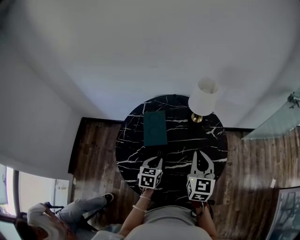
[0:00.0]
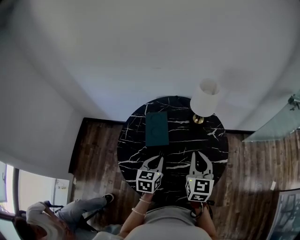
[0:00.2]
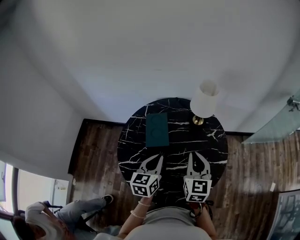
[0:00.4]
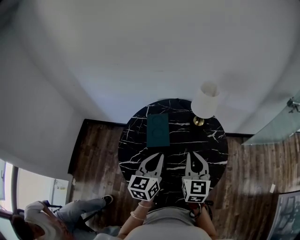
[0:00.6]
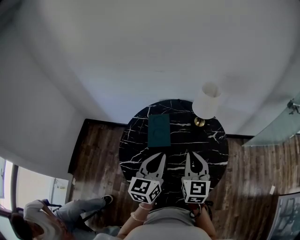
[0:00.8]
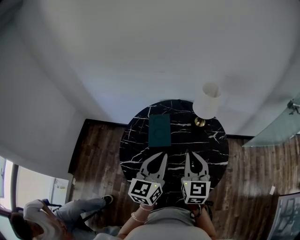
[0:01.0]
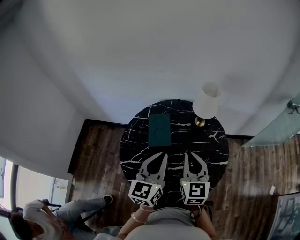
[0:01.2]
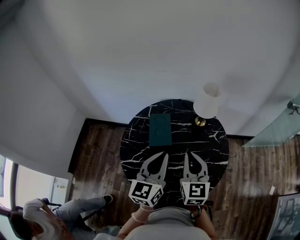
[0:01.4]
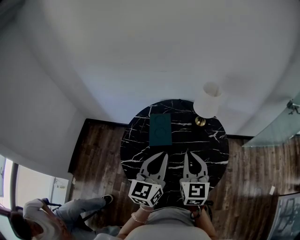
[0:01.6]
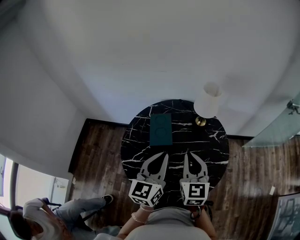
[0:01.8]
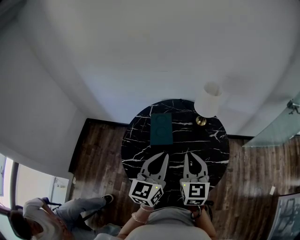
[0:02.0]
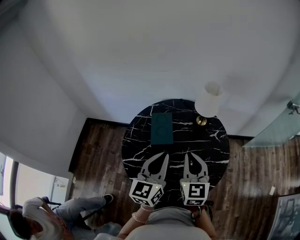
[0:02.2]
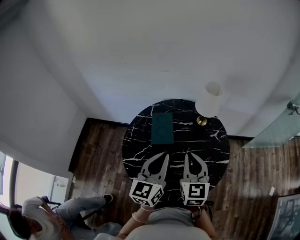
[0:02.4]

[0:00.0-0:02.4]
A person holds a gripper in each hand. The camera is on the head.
0:00.0 to 0:01.2: The right gripper moves to the left, approximately 5 cm; the left gripper shifts about 25 cm upward, and angles its fingers upward, by some 40 degrees.
0:01.2 to 0:02.4: The grippers move only a little.

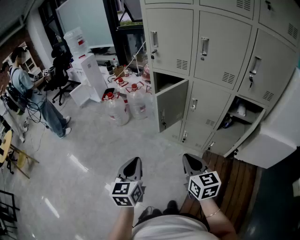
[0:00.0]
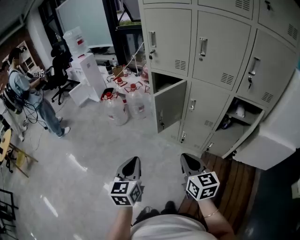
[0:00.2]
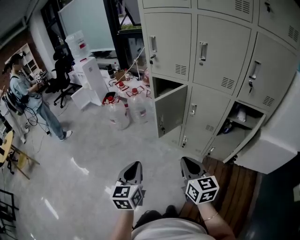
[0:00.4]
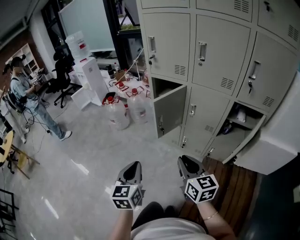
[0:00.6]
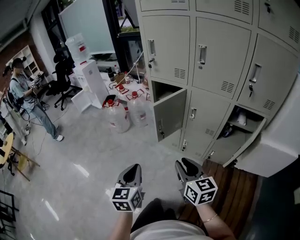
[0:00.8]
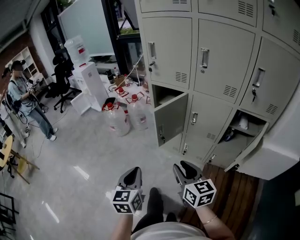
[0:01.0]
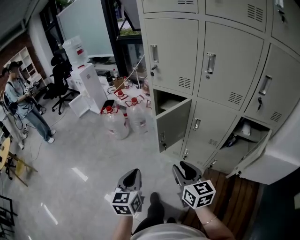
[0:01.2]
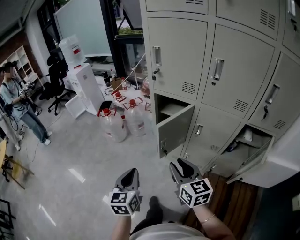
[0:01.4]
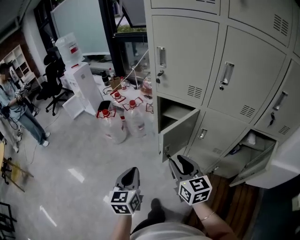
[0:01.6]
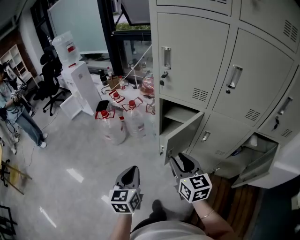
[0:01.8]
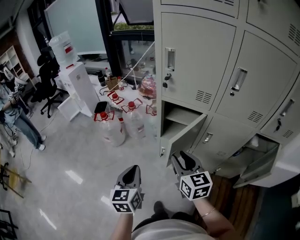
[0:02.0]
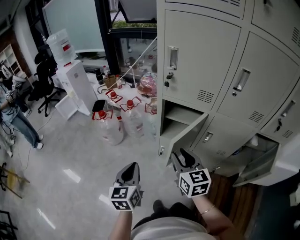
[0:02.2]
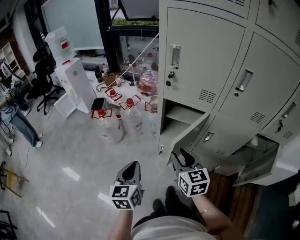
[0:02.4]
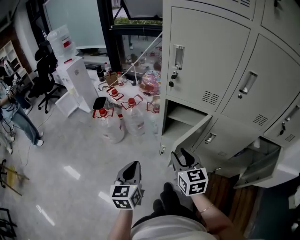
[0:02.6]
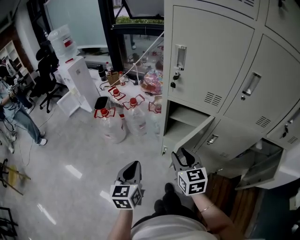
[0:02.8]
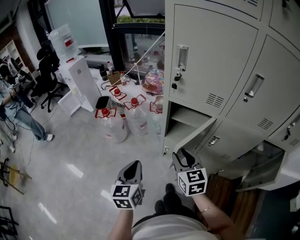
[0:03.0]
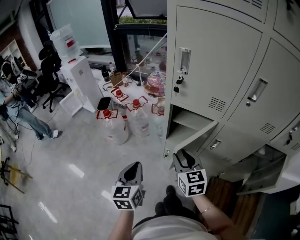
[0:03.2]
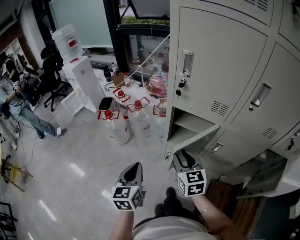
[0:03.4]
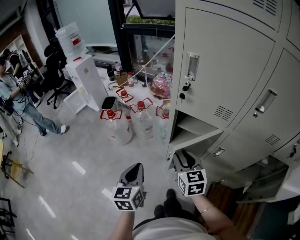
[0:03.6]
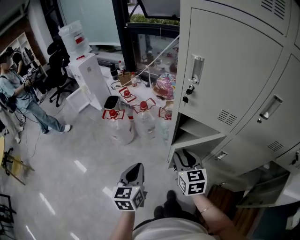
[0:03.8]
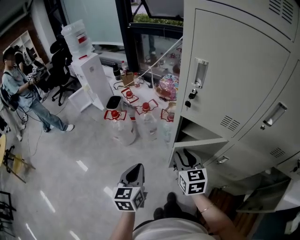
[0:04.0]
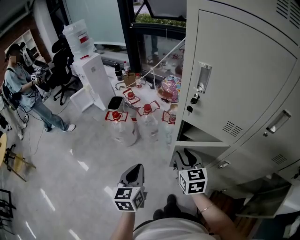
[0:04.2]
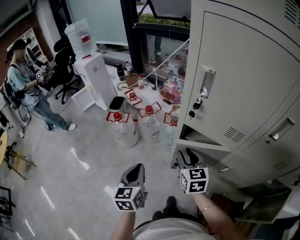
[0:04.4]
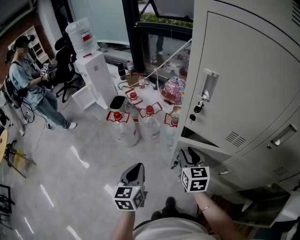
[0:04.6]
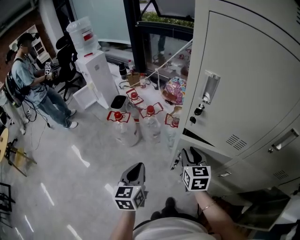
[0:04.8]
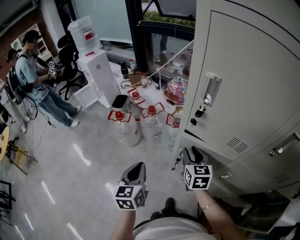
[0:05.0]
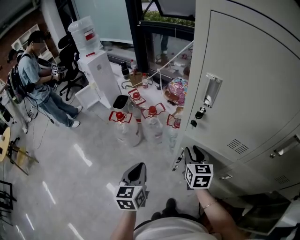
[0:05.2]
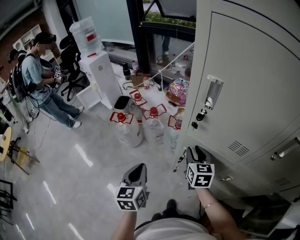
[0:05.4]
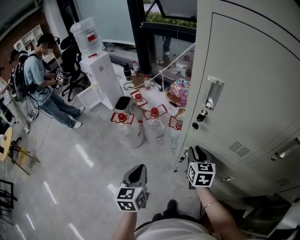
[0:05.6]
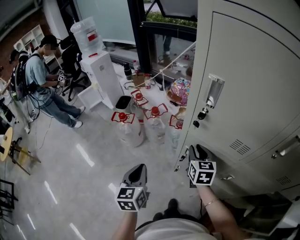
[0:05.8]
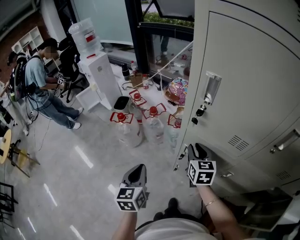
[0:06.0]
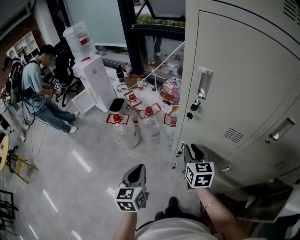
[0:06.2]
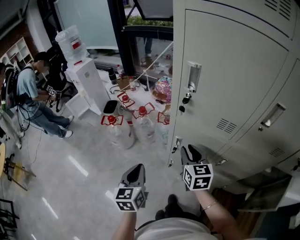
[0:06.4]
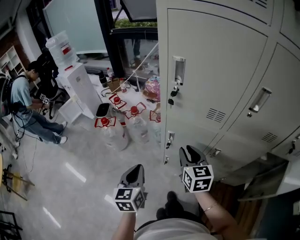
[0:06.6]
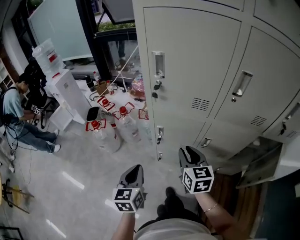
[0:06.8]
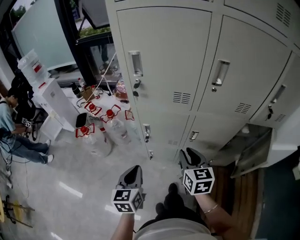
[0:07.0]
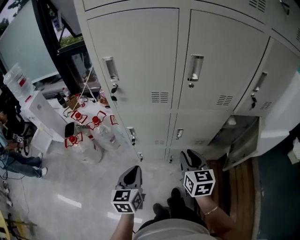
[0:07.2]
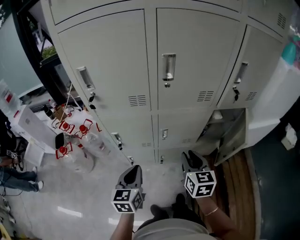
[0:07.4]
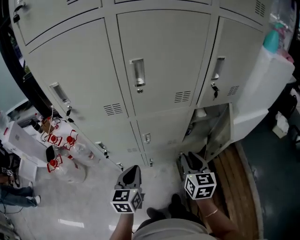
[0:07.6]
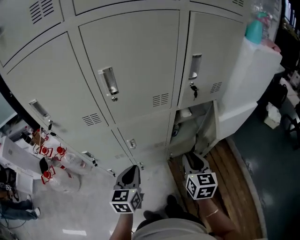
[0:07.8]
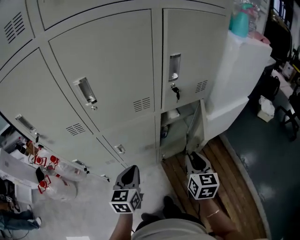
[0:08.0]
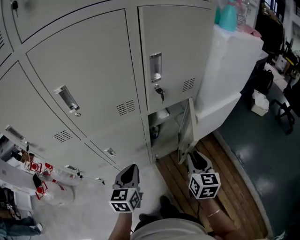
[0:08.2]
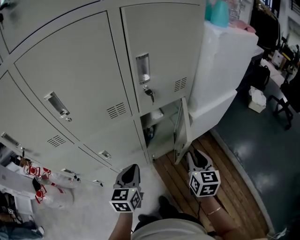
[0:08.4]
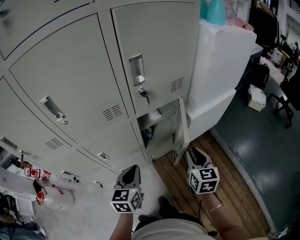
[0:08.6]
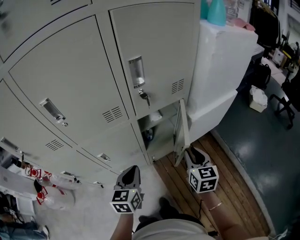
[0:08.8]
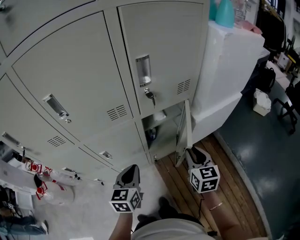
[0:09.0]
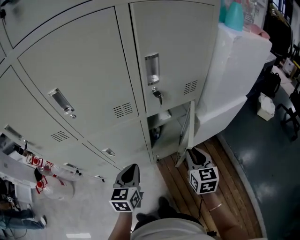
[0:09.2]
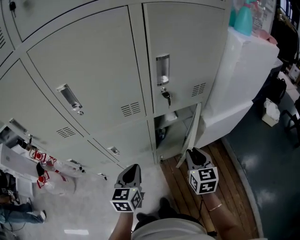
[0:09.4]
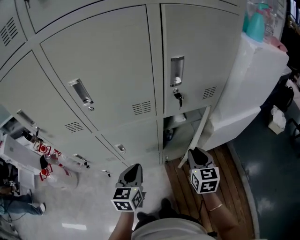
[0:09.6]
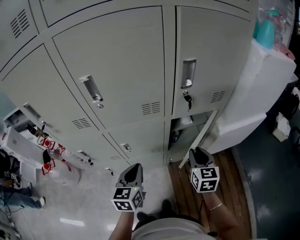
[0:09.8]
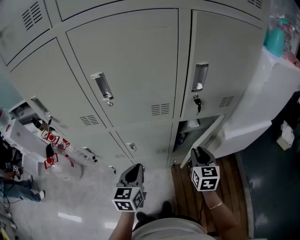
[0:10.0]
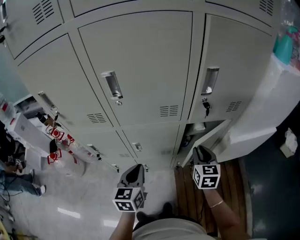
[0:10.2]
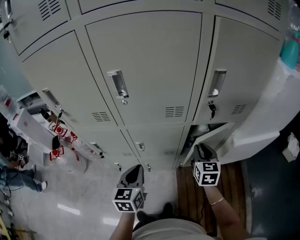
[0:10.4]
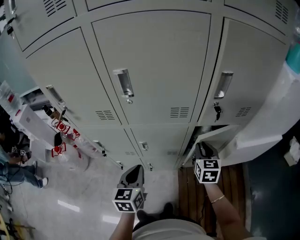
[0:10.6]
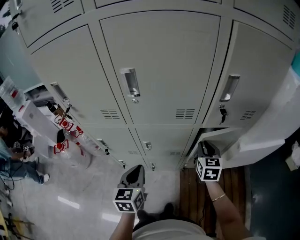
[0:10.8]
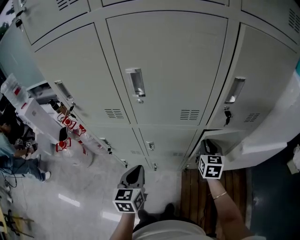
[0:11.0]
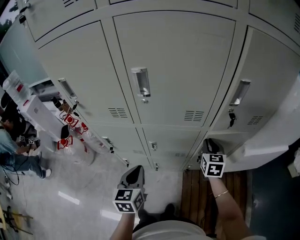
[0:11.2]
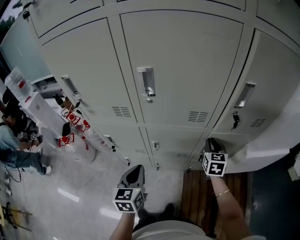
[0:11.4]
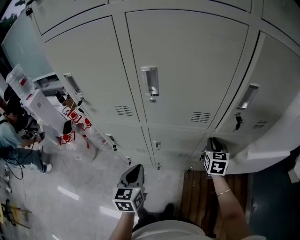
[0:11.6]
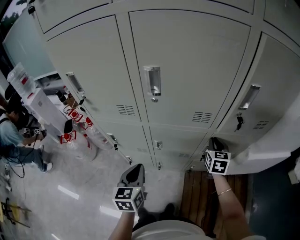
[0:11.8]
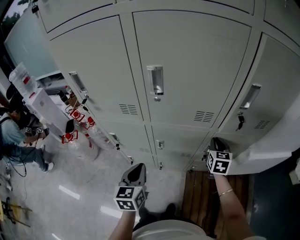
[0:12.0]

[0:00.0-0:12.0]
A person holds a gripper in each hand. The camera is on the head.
0:00.0 to 0:01.6: The two grippers go some 25 cm forward. The right gripper opens up.
0:01.6 to 0:03.0: Both grippers travel together forward, some 15 cm.
0:03.0 to 0:04.4: Both grippers travel together forward, roughly 15 cm.
0:04.4 to 0:06.0: The right gripper shifts about 5 cm forward.
0:06.0 to 0:07.6: The right gripper shifts by roughly 50 cm, and swivels about 40 degrees. The left gripper changes place by roughly 35 cm, and rotates about 50 degrees.
0:07.6 to 0:09.0: Both grippers travel together to the right and forward, approximately 25 cm.
0:09.0 to 0:10.4: The right gripper shifts roughly 15 cm to the left and forward, while the left gripper shifts approximately 15 cm to the left, and rotates about 20 degrees.
0:10.4 to 0:12.0: The left gripper heads to the left, covering some 5 cm; the right gripper goes some 10 cm forward.

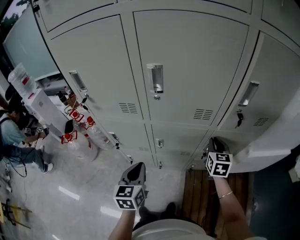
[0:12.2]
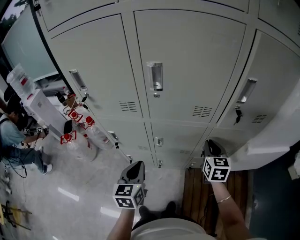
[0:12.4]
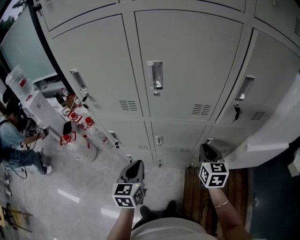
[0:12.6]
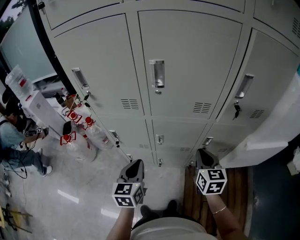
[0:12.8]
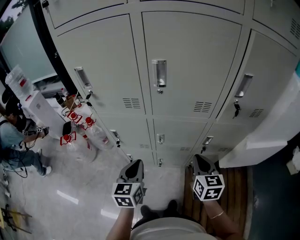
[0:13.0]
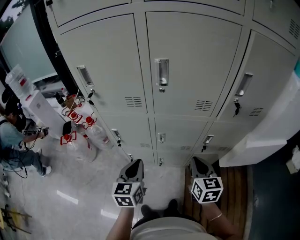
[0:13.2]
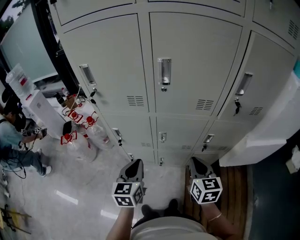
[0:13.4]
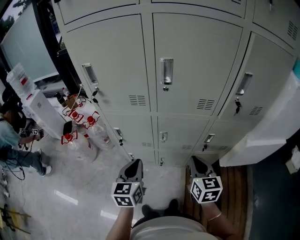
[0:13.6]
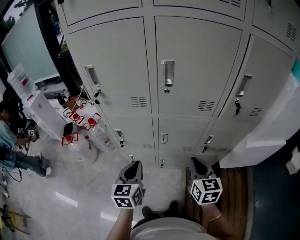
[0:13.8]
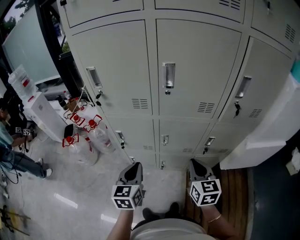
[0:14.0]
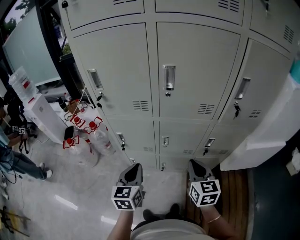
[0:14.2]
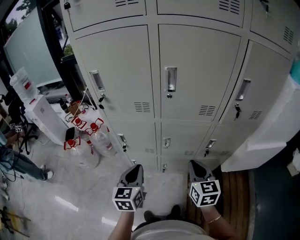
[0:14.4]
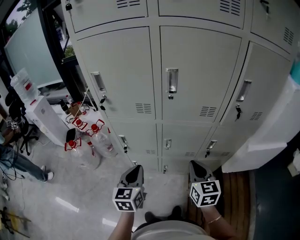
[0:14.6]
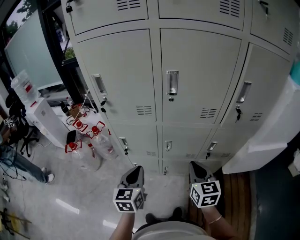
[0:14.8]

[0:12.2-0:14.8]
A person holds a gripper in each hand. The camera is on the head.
0:12.2 to 0:13.4: The left gripper changes place by roughly 5 cm; the right gripper shifts approximately 20 cm backward and to the left.
0:13.4 to 0:14.8: The grippers stay close to where they were, moving slightly.

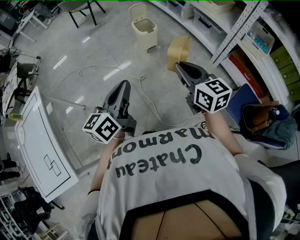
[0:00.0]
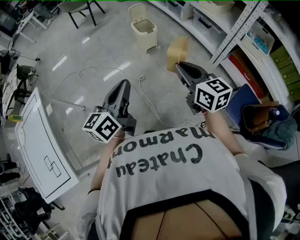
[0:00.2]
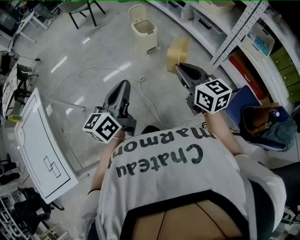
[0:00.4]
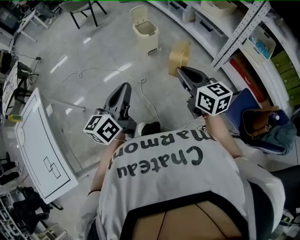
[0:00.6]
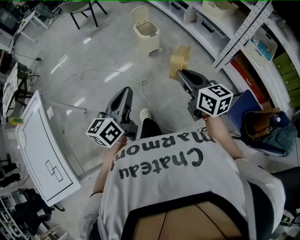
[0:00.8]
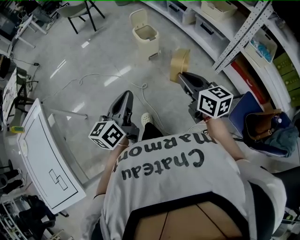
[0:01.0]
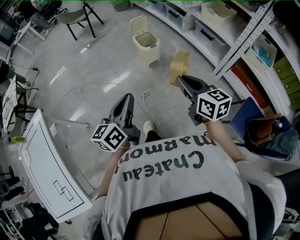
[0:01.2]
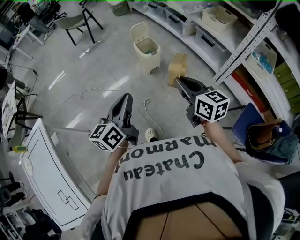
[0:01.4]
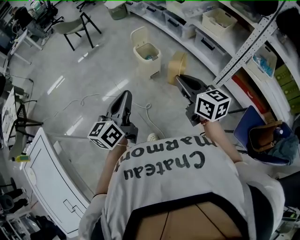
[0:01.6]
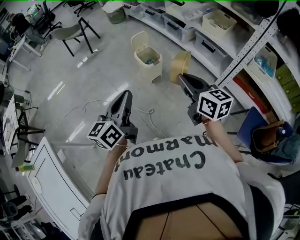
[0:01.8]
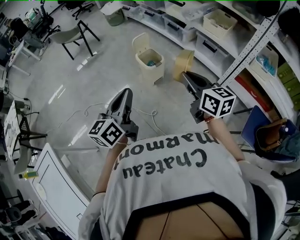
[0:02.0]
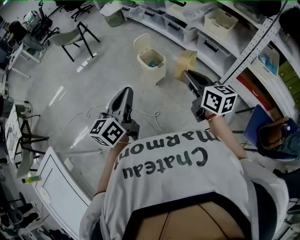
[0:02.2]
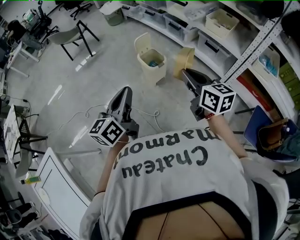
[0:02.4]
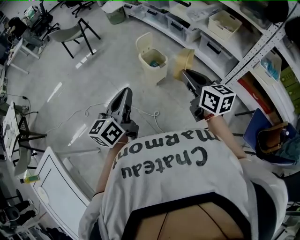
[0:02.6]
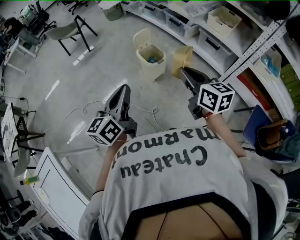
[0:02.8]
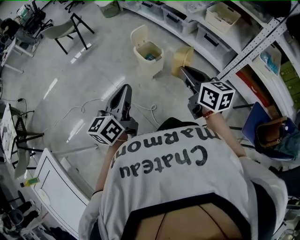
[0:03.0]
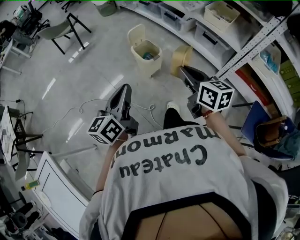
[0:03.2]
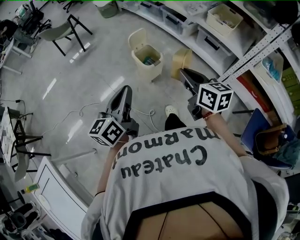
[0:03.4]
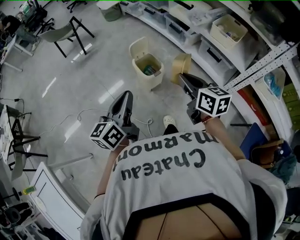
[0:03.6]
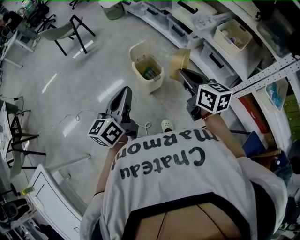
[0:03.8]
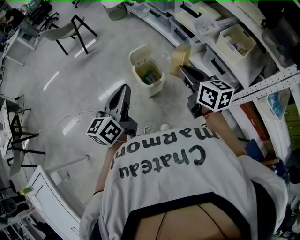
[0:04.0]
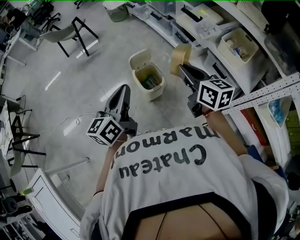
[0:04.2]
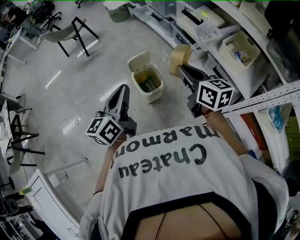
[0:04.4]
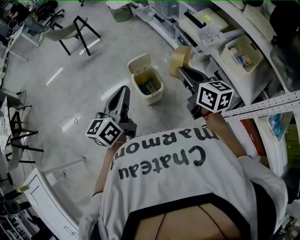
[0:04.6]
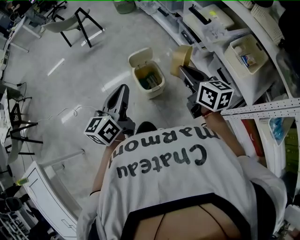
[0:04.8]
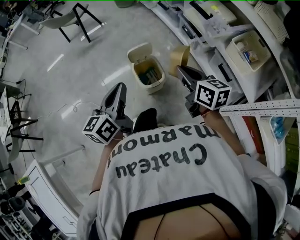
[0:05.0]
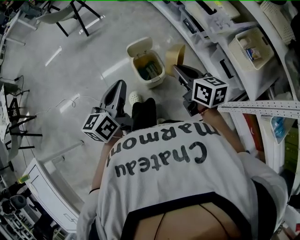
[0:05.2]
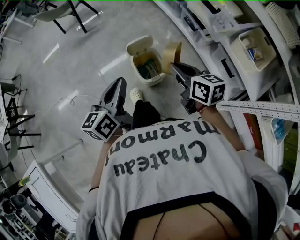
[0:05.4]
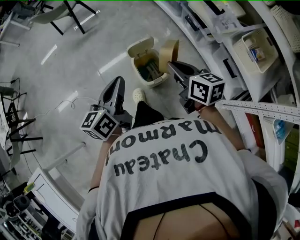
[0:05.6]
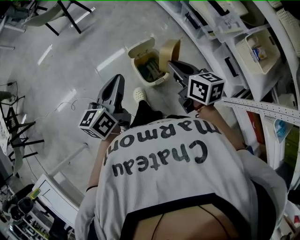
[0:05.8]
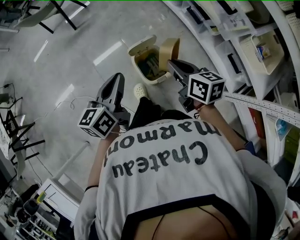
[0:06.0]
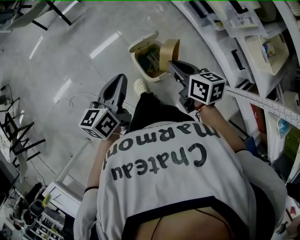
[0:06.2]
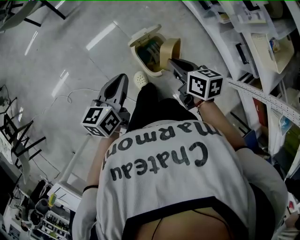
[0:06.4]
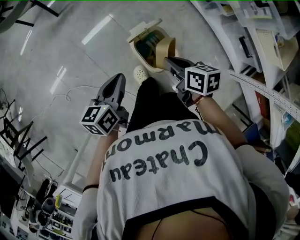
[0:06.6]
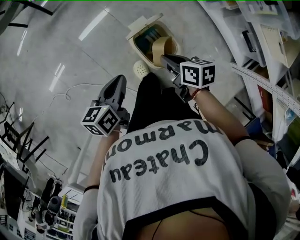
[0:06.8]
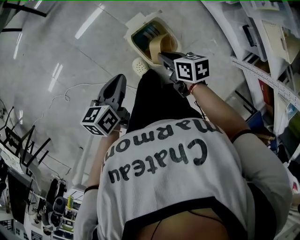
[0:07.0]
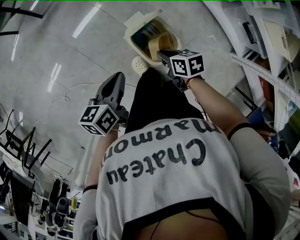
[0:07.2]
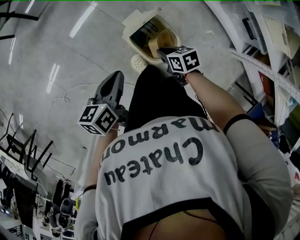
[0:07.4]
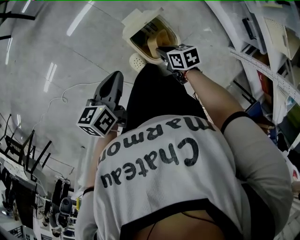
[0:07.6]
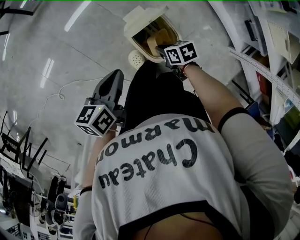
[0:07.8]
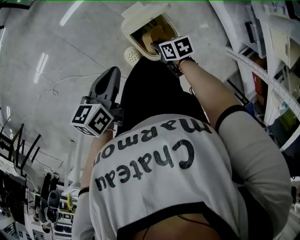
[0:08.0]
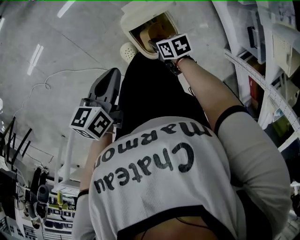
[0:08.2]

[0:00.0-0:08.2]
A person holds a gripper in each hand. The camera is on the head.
0:00.0 to 0:01.6: The two grippers go about 20 cm forward.
0:01.6 to 0:03.2: The grippers both shift forward by approximately 15 cm.
0:03.2 to 0:05.0: The two grippers go some 30 cm forward.
0:05.0 to 0:06.6: The left gripper heads downward and forward, covering about 30 cm, and changes its angle by about 30 degrees. The right gripper heads downward, forward and to the left, covering about 30 cm, and rotates about 30 degrees.
0:06.6 to 0:08.2: The right gripper shifts about 25 cm downward, and swivels some 30 degrees. Meanwhile the left gripper shifts about 10 cm downward.
